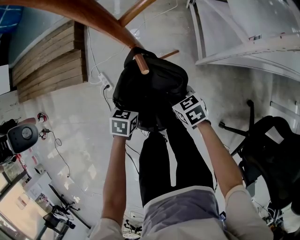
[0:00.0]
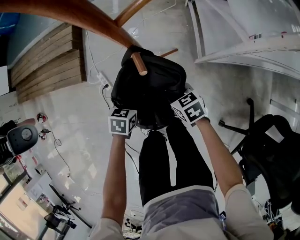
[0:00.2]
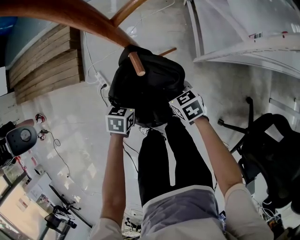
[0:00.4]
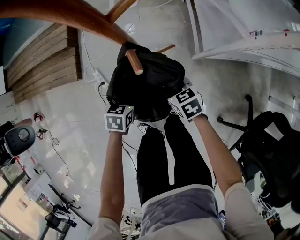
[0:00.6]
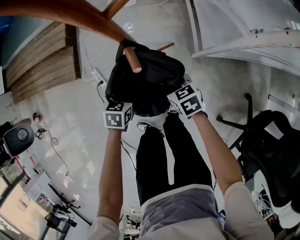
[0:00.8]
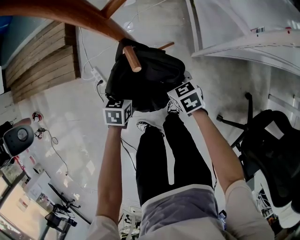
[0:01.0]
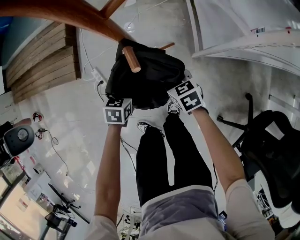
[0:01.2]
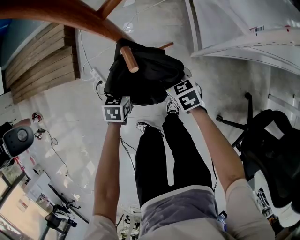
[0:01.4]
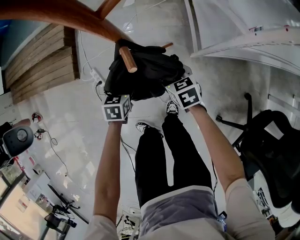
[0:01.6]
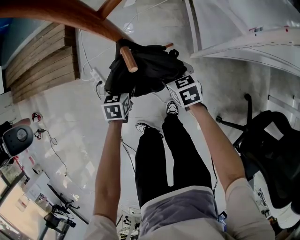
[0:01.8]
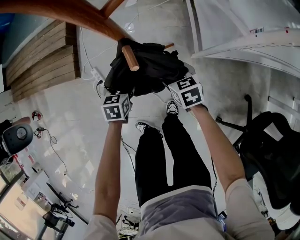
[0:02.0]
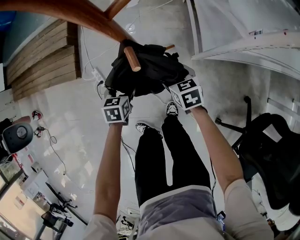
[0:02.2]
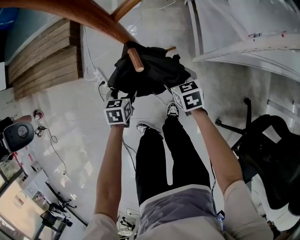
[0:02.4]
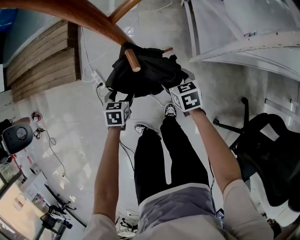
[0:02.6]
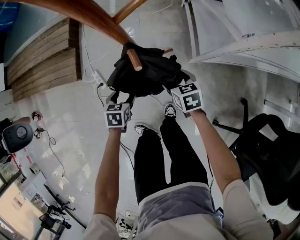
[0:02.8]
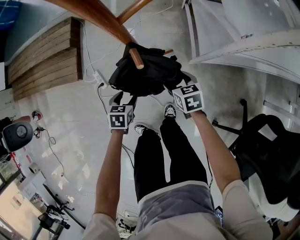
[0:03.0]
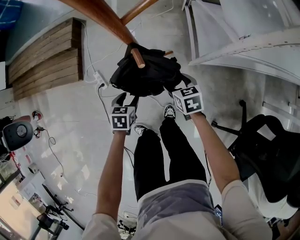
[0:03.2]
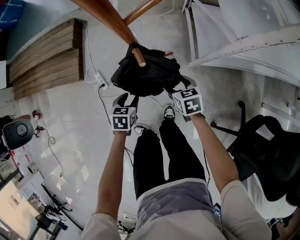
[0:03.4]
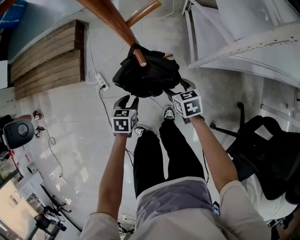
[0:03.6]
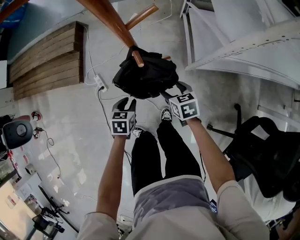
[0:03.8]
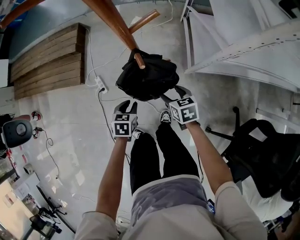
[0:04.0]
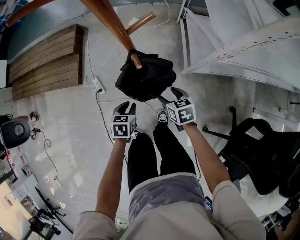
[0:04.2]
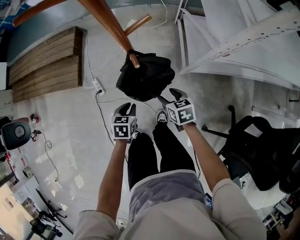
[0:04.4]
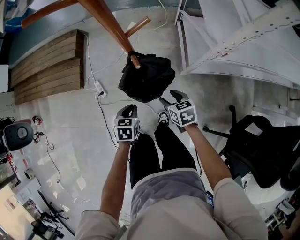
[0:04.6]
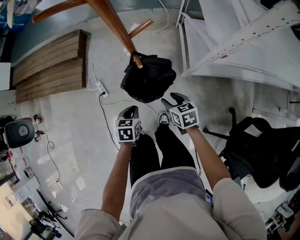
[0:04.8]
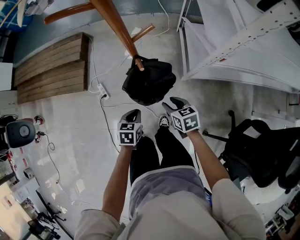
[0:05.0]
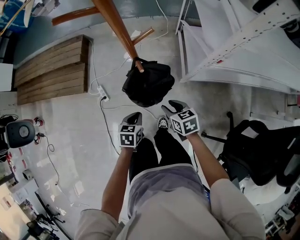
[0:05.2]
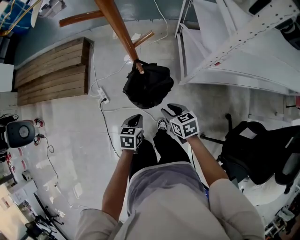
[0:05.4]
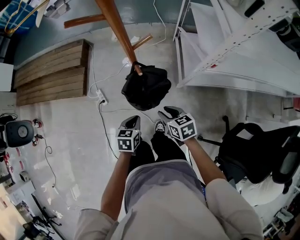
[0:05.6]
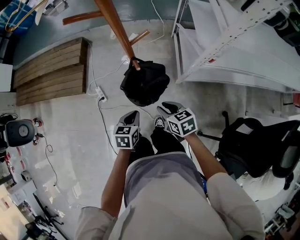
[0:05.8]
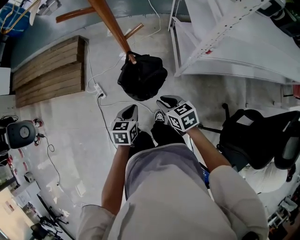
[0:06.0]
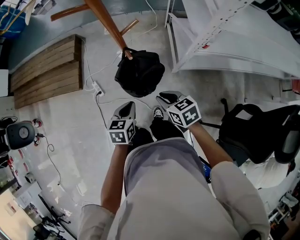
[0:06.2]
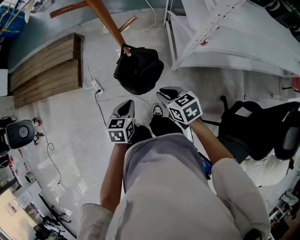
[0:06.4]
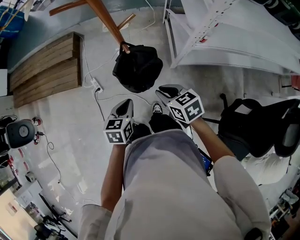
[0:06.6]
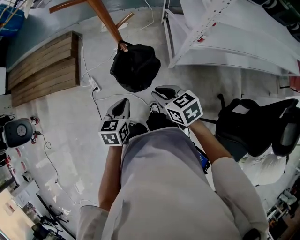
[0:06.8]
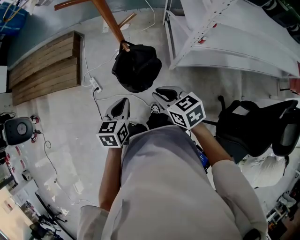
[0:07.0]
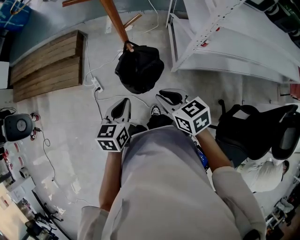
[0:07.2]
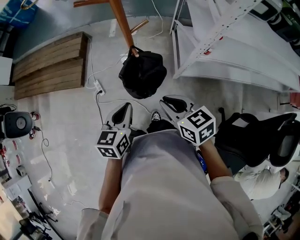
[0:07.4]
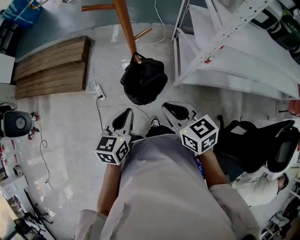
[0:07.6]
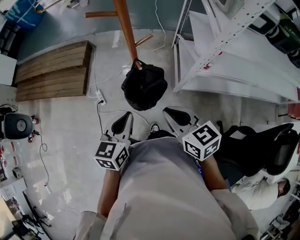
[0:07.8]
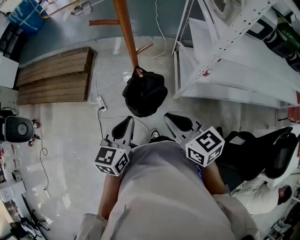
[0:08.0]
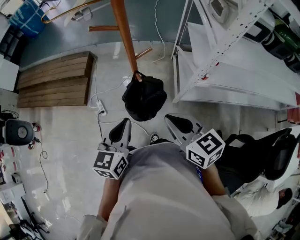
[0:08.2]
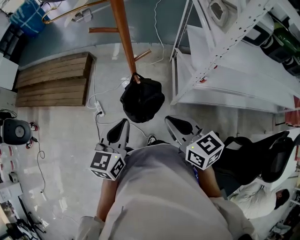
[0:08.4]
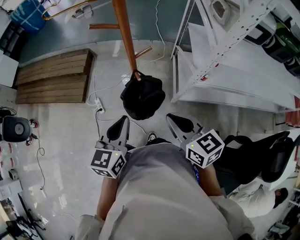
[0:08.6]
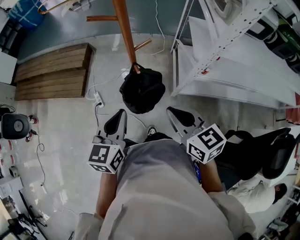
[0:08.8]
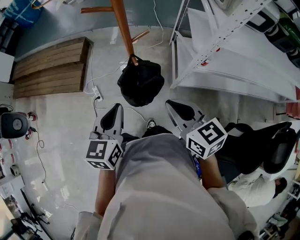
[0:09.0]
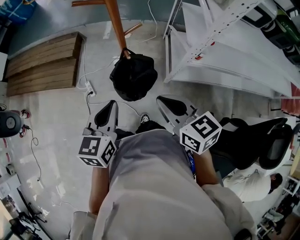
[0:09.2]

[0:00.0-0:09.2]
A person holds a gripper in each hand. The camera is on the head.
0:00.0 to 0:01.6: Both grippers travel together forward, about 5 cm. The left gripper opens up. The right gripper opens up.
0:01.6 to 0:03.0: The left gripper shifts roughly 5 cm backward.
0:03.0 to 0:04.6: Both grippers move upward and backward, about 10 cm. The left gripper closes.
0:04.6 to 0:06.2: The right gripper moves upward and backward, some 15 cm, and closes up; the left gripper travels upward by approximately 15 cm.
0:06.2 to 0:07.6: Both grippers move upward, approximately 15 cm.
0:07.6 to 0:09.2: The left gripper heads upward, covering some 5 cm. Meanwhile the right gripper shifts by roughly 5 cm.

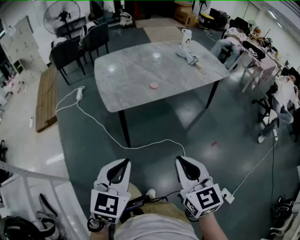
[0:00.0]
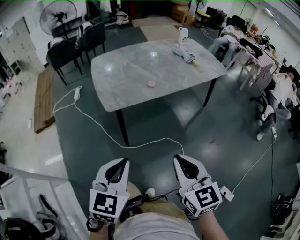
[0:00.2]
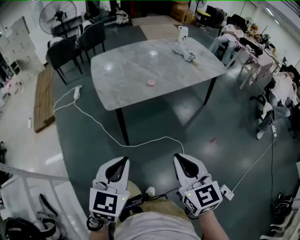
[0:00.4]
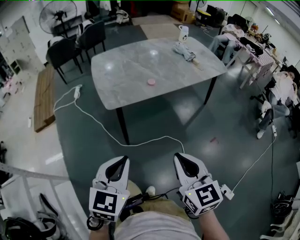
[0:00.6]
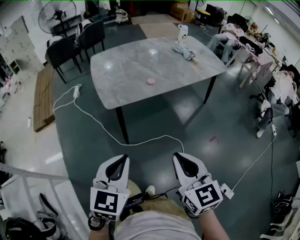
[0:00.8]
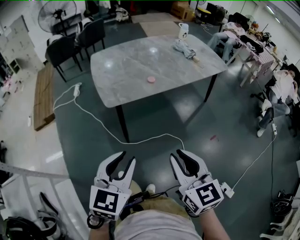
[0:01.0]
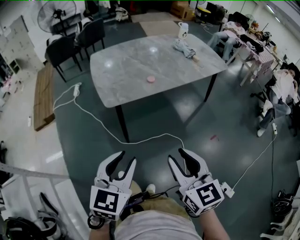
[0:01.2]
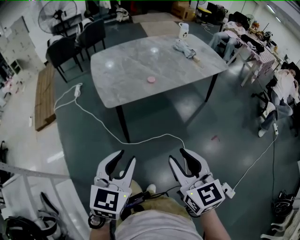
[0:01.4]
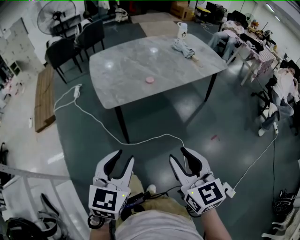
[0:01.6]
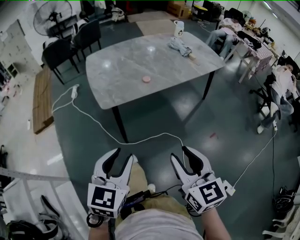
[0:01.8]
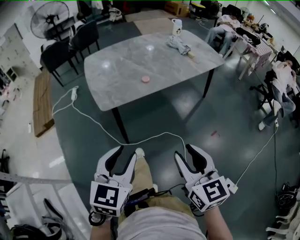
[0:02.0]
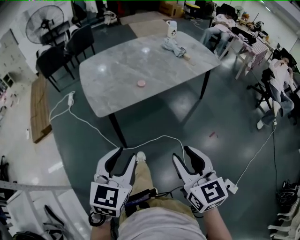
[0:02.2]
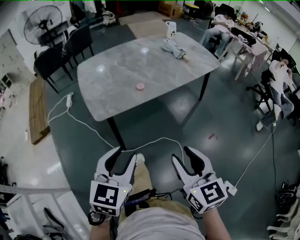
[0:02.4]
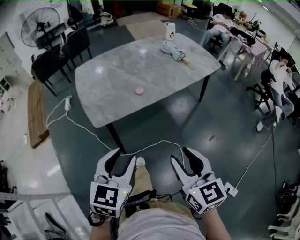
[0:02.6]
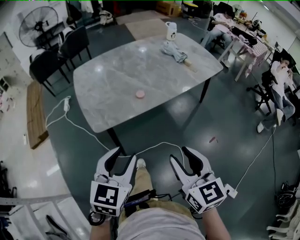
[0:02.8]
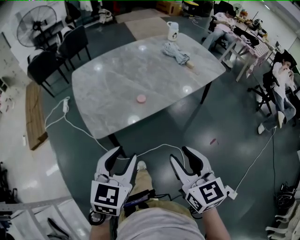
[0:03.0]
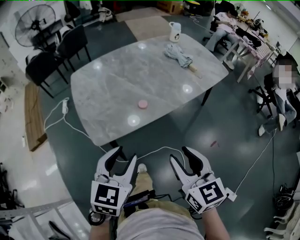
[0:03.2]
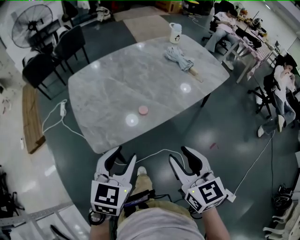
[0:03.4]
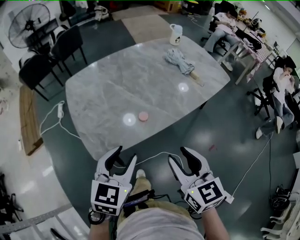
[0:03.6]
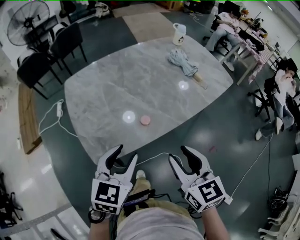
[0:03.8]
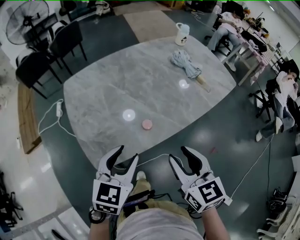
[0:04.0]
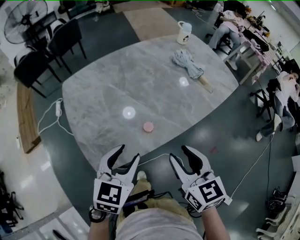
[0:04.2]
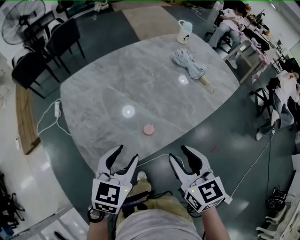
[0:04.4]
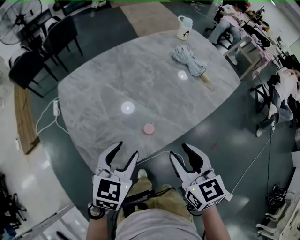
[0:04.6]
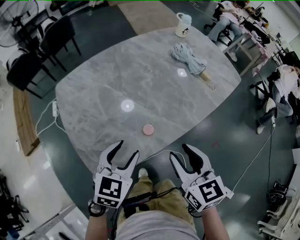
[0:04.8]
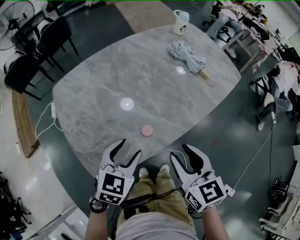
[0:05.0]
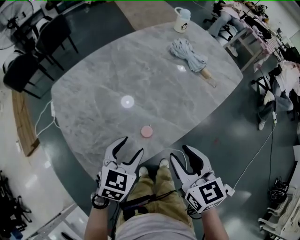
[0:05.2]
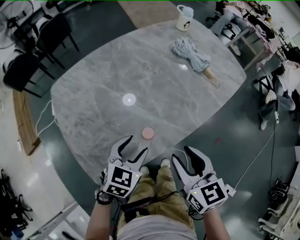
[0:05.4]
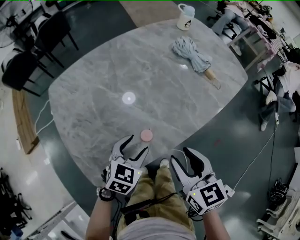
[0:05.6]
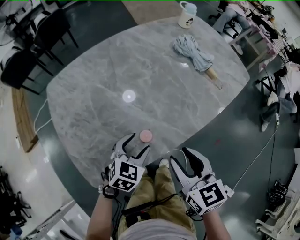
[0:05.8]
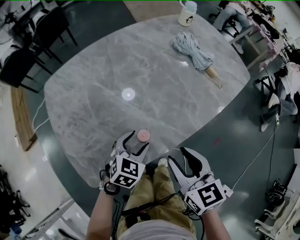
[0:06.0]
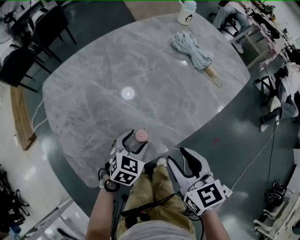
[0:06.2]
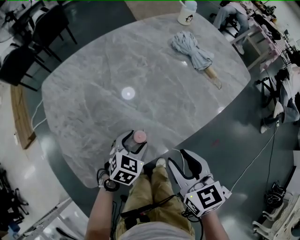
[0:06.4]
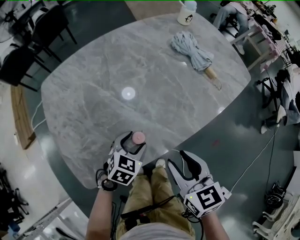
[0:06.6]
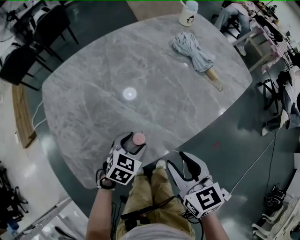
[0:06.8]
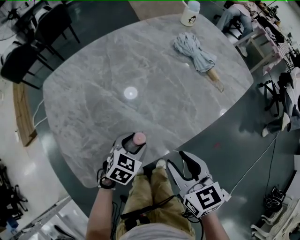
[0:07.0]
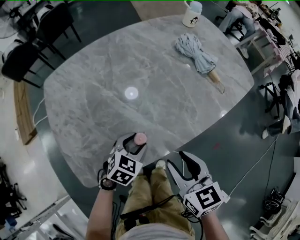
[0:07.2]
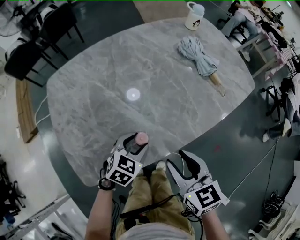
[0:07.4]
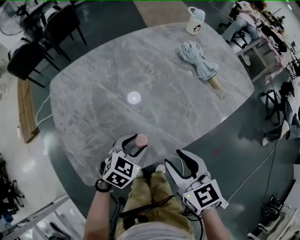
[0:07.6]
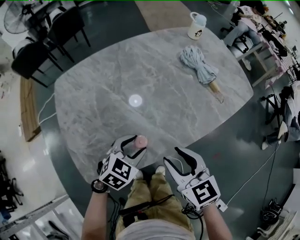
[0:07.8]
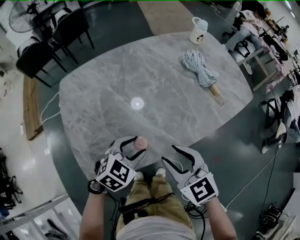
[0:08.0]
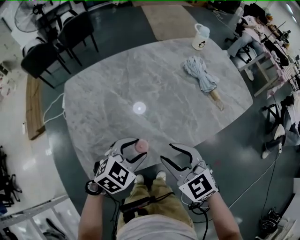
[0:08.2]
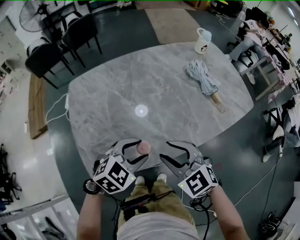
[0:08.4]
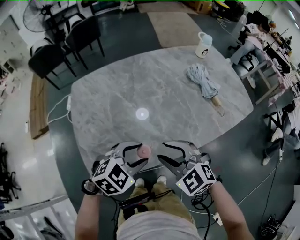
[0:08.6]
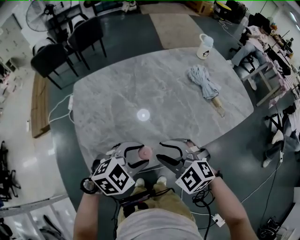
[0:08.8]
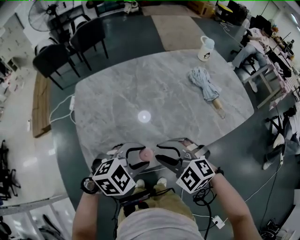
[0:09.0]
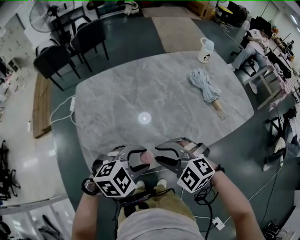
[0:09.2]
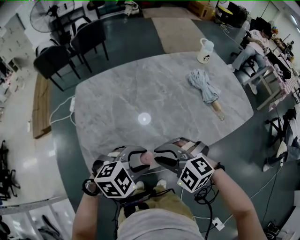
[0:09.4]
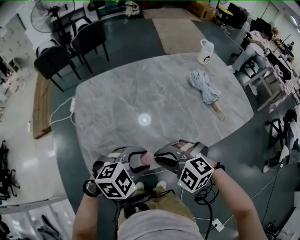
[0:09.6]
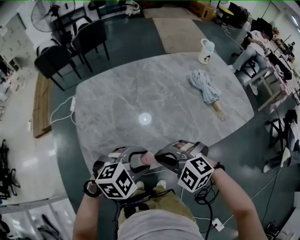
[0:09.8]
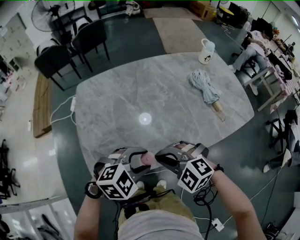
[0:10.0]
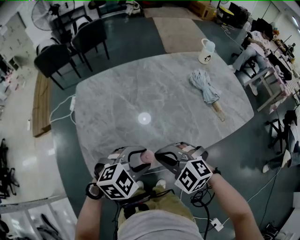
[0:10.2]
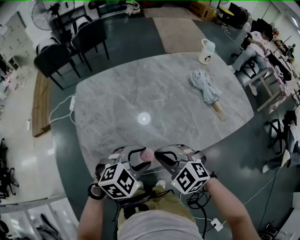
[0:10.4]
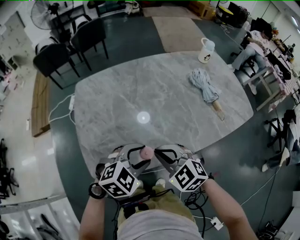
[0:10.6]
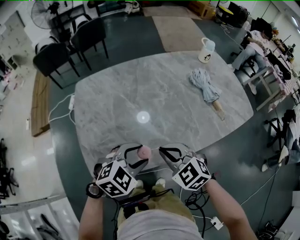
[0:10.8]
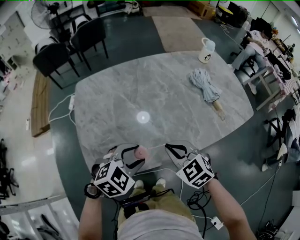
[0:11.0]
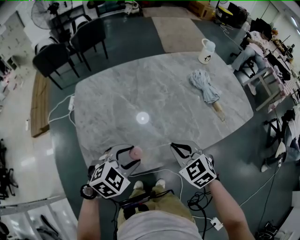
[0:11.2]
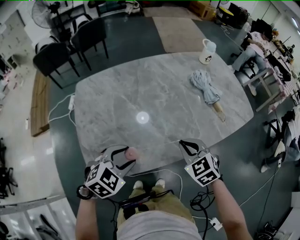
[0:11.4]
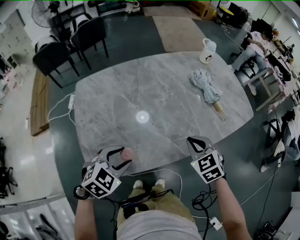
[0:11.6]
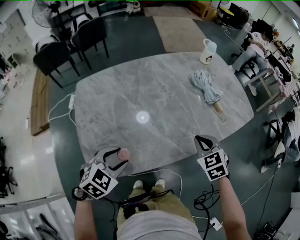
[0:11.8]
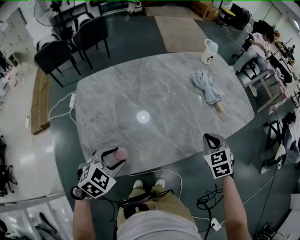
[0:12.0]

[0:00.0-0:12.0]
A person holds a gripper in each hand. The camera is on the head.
0:00.0 to 0:01.6: The left gripper opens up. The right gripper opens its fingers.
0:01.6 to 0:03.0: Both grippers travel together forward, about 15 cm.
0:03.0 to 0:04.4: The two grippers go roughly 20 cm forward.
0:04.4 to 0:06.0: The left gripper goes about 20 cm downward and forward; the right gripper shifts approximately 10 cm downward and forward.
0:06.0 to 0:07.6: There are only small adjustments of the grippers.
0:07.6 to 0:09.0: The left gripper shifts roughly 15 cm upward and backward, and rotates roughly 20 degrees, while the right gripper goes some 5 cm to the left, and twists approximately 60 degrees counterclockwise, seen from behind.
0:09.0 to 0:10.4: The right gripper closes.
0:10.4 to 0:12.0: The left gripper moves to the left, approximately 10 cm, while the right gripper travels to the right and forward by approximately 20 cm, and changes its angle by some 50 degrees.

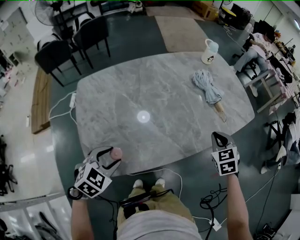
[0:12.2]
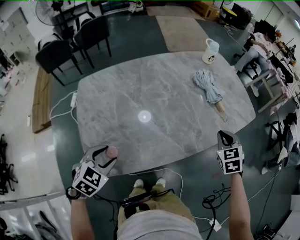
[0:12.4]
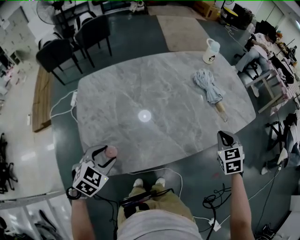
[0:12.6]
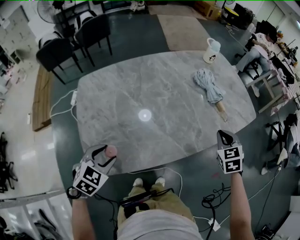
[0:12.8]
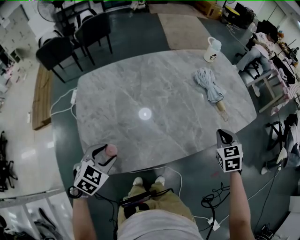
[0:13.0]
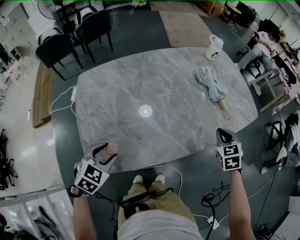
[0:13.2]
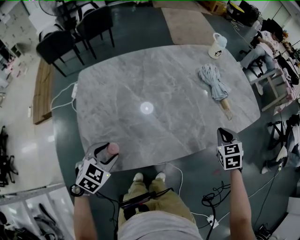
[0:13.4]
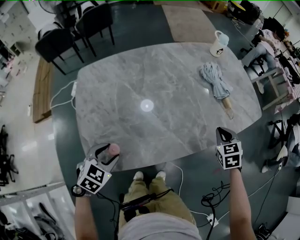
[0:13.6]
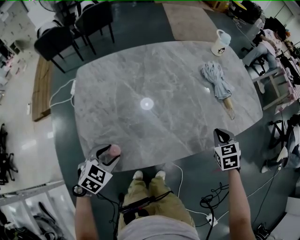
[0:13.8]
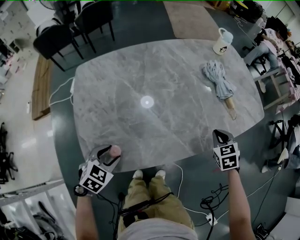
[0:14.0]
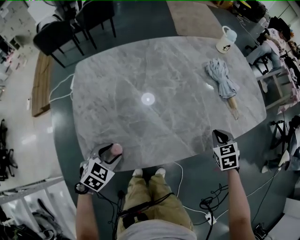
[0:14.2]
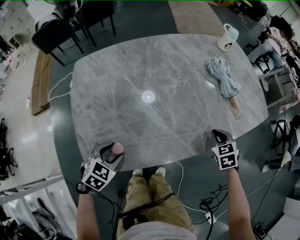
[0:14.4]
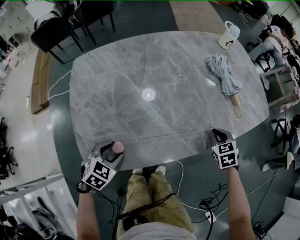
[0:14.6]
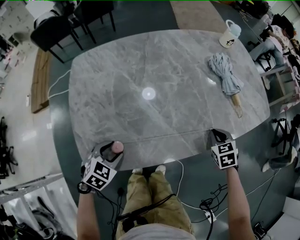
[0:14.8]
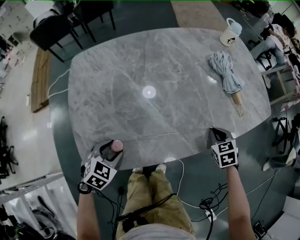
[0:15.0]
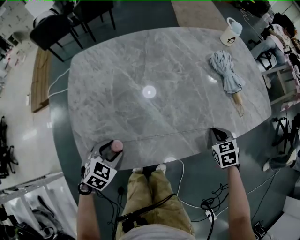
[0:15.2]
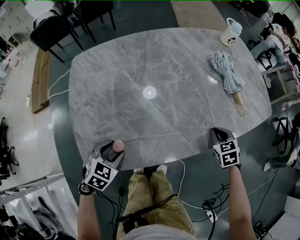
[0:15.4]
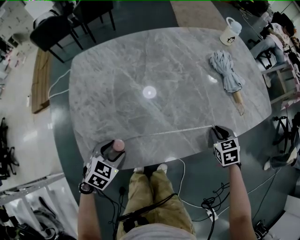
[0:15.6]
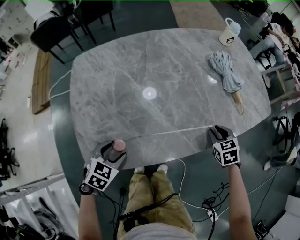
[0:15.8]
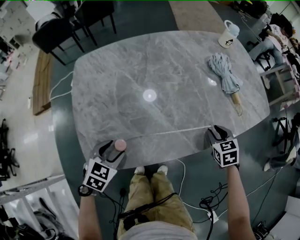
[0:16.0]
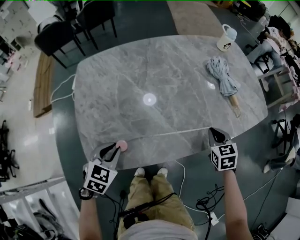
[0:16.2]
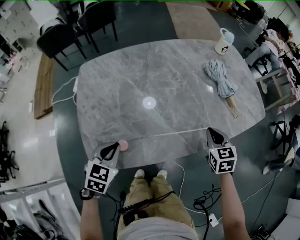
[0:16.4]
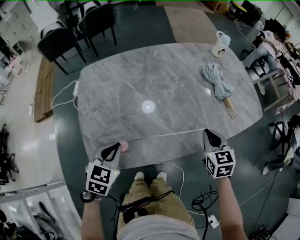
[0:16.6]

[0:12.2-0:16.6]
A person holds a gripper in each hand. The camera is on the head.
0:12.2 to 0:13.6: The left gripper moves about 5 cm.
0:13.6 to 0:15.2: Both grippers move downward, about 10 cm.
0:15.2 to 0:16.6: The right gripper goes approximately 15 cm upward and to the left, swivels approximately 20 degrees, and opens and closes again. Meanwhile the left gripper goes about 10 cm upward, and closes up.
